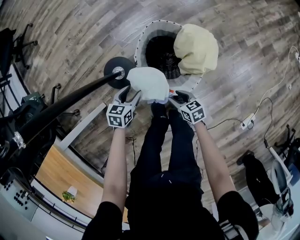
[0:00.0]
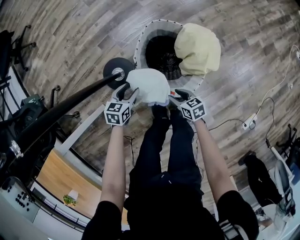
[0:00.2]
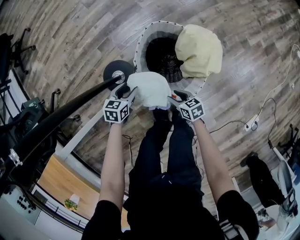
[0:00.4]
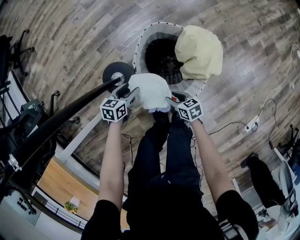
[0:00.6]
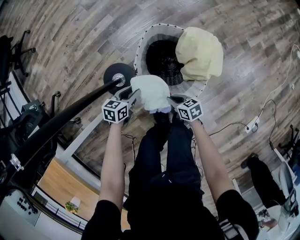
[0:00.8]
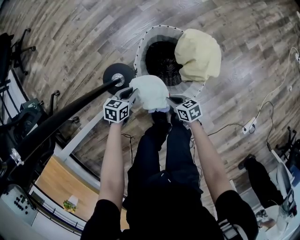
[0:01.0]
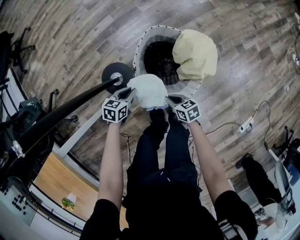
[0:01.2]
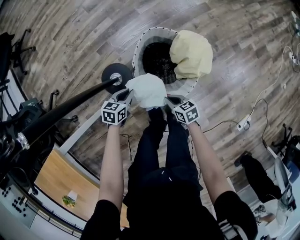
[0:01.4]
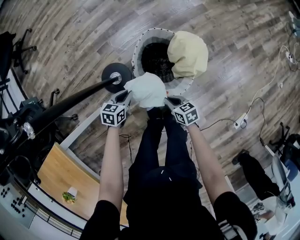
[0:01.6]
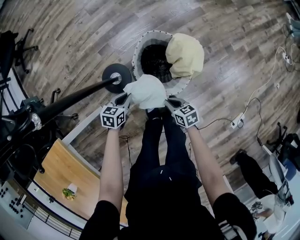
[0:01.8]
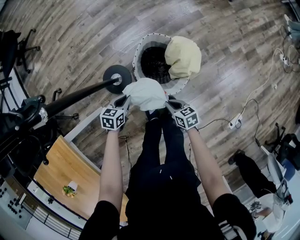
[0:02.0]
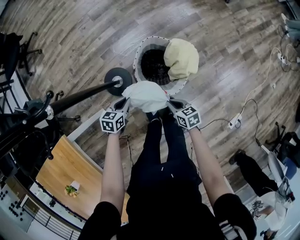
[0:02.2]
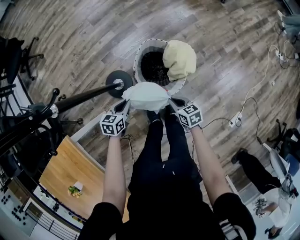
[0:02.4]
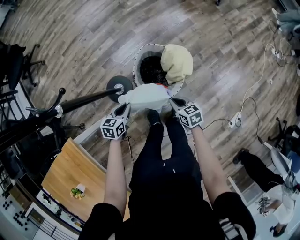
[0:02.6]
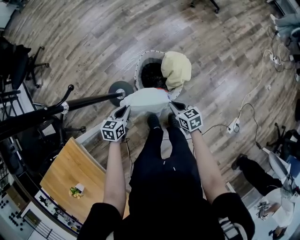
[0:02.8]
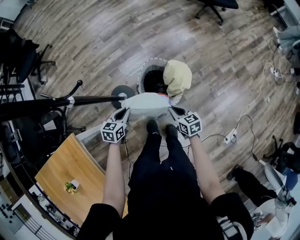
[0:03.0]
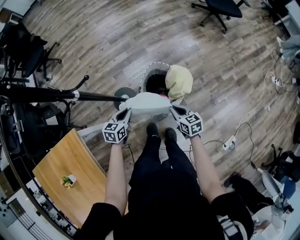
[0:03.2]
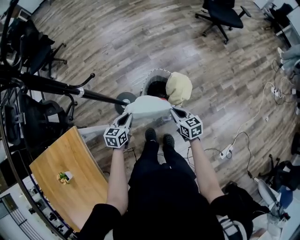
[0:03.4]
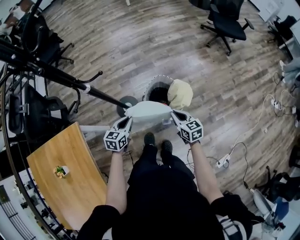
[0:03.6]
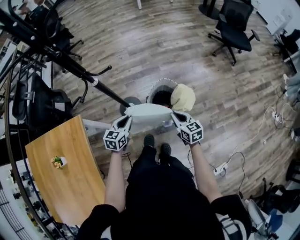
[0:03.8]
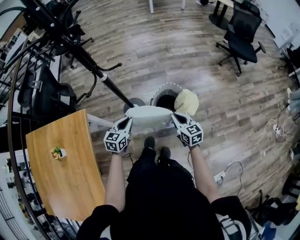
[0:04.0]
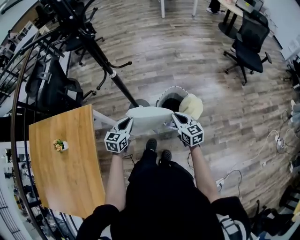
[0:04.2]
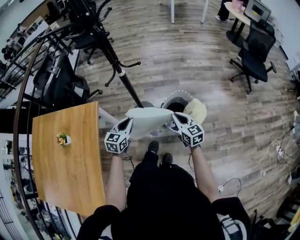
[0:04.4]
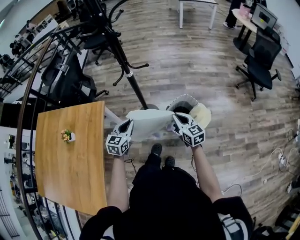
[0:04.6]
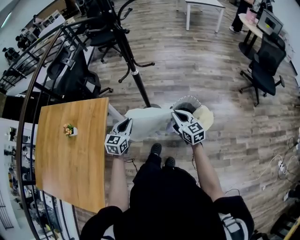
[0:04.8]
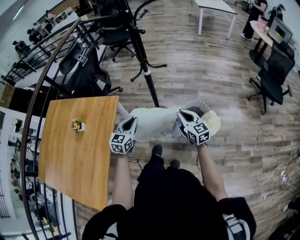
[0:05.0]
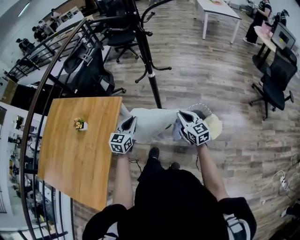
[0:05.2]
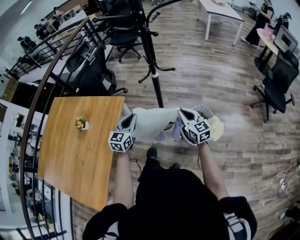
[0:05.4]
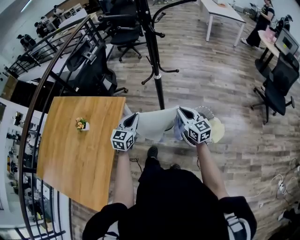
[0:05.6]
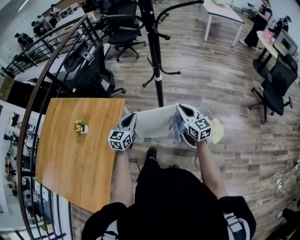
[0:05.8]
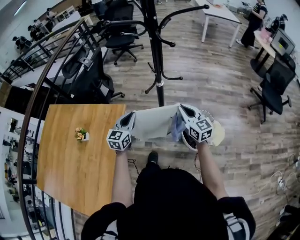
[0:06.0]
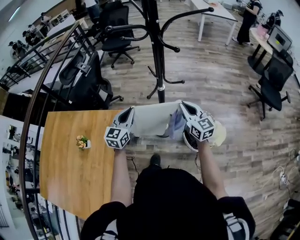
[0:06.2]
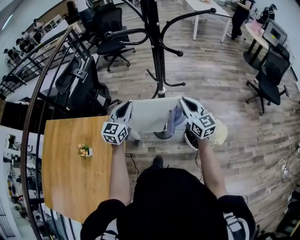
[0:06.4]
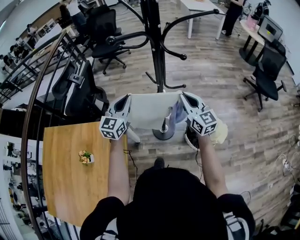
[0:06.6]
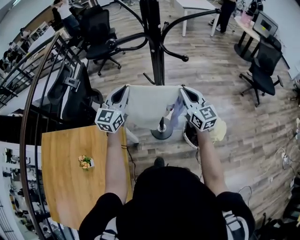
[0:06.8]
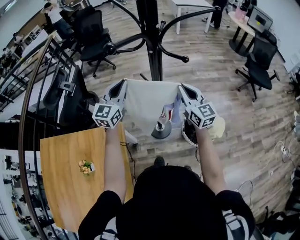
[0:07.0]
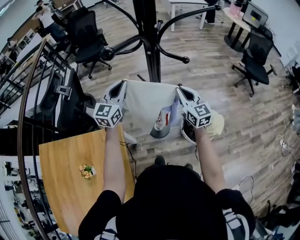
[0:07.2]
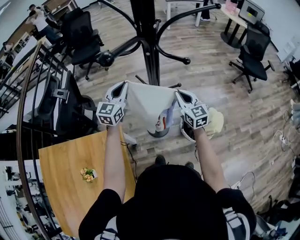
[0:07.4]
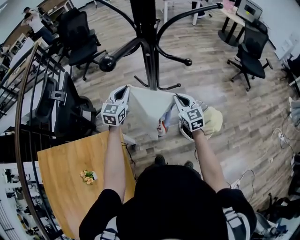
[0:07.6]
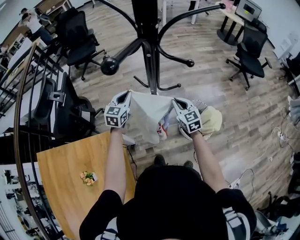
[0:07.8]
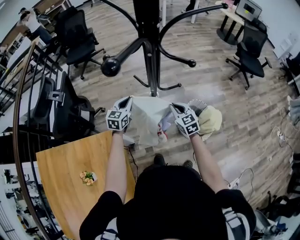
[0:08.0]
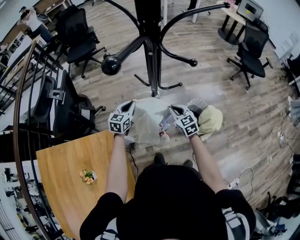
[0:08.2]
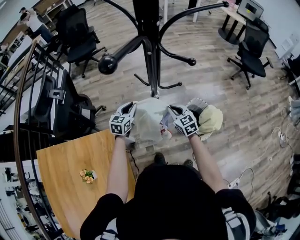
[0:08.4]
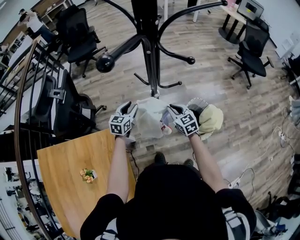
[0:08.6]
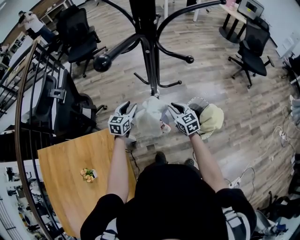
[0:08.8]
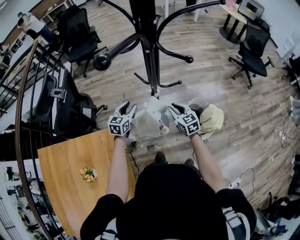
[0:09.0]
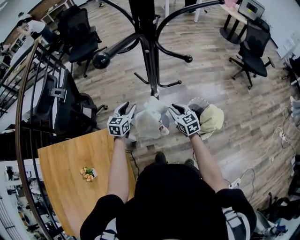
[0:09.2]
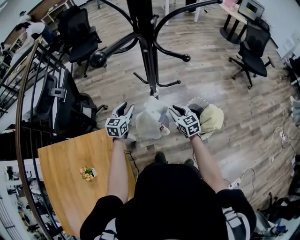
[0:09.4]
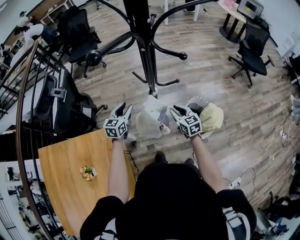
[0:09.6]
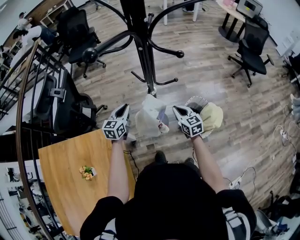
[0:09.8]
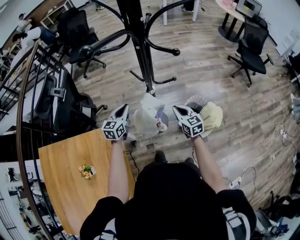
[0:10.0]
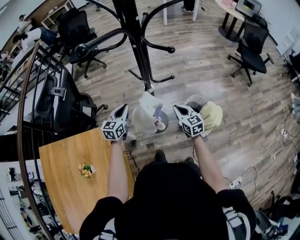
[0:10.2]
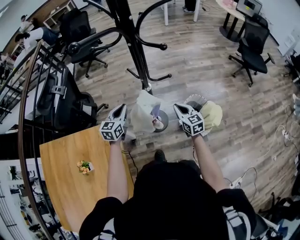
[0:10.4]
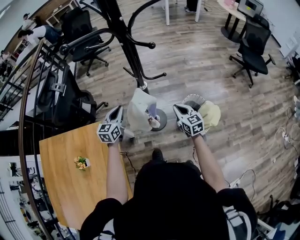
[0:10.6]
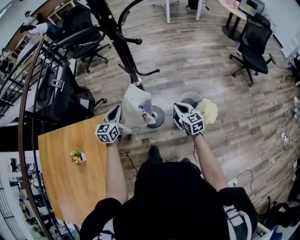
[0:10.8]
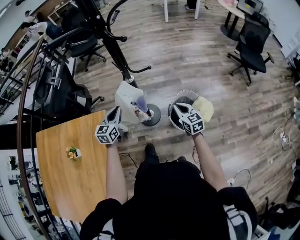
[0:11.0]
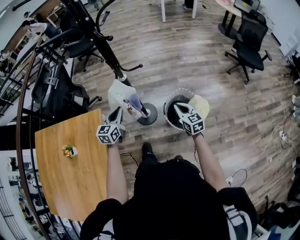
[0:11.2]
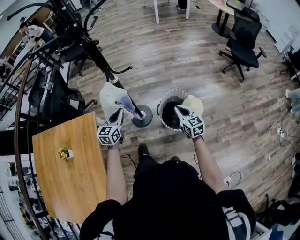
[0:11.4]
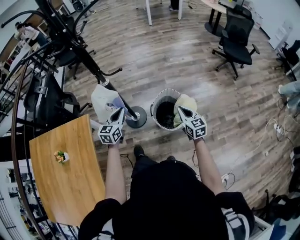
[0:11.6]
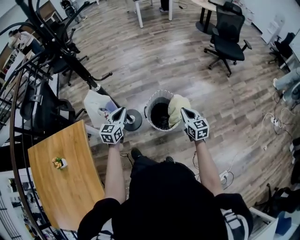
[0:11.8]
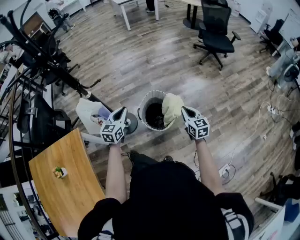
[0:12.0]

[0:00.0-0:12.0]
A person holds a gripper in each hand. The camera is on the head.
0:00.0 to 0:01.6: The right gripper moves upward, about 5 cm, and closes up. The left gripper closes.
0:01.6 to 0:03.0: Both grippers travel together upward, about 20 cm.
0:03.0 to 0:04.4: Both grippers move upward, approximately 20 cm. The right gripper changes its angle by approximately 40 degrees. The left gripper rotates approximately 40 degrees.
0:04.4 to 0:06.0: The two grippers go roughly 20 cm to the left, forward and upward.
0:06.0 to 0:07.6: The right gripper is displaced forward by roughly 15 cm, and swivels roughly 30 degrees, while the left gripper moves forward, approximately 25 cm, and changes its angle by some 20 degrees.
0:07.6 to 0:09.0: The right gripper goes some 10 cm downward. The left gripper travels downward and backward by approximately 15 cm, and opens.
0:09.0 to 0:10.4: The left gripper is displaced backward by approximately 5 cm, and closes. Meanwhile the right gripper moves to the right, some 5 cm, and closes up.
0:10.4 to 0:12.0: The right gripper travels to the right and backward by roughly 40 cm. Meanwhile the left gripper moves to the right, roughly 35 cm.

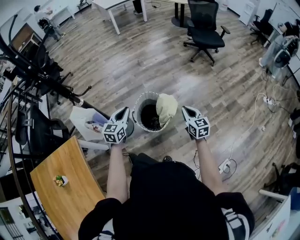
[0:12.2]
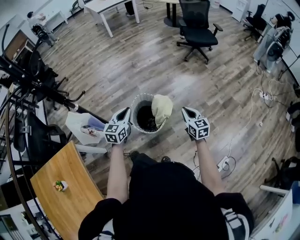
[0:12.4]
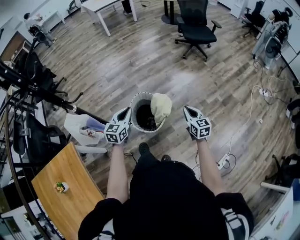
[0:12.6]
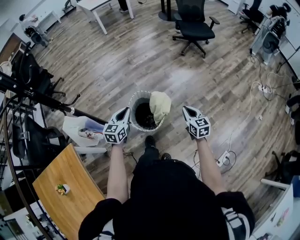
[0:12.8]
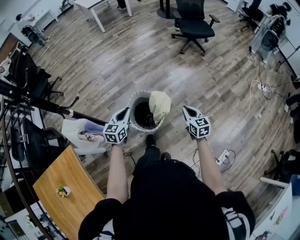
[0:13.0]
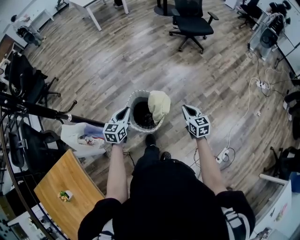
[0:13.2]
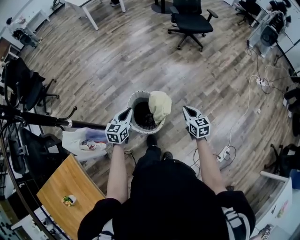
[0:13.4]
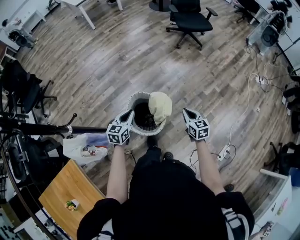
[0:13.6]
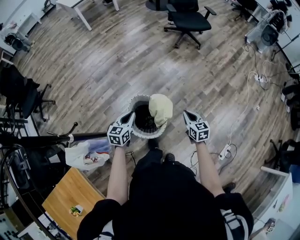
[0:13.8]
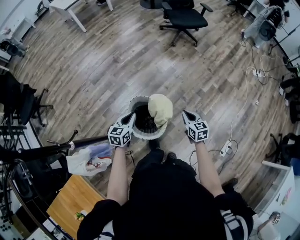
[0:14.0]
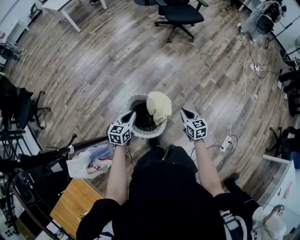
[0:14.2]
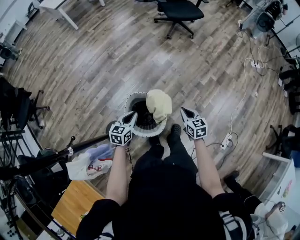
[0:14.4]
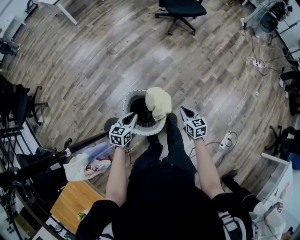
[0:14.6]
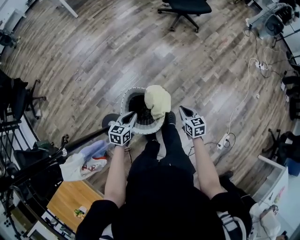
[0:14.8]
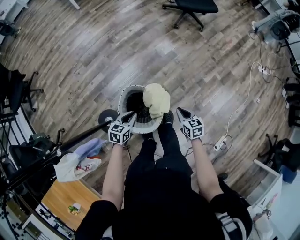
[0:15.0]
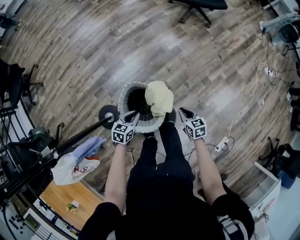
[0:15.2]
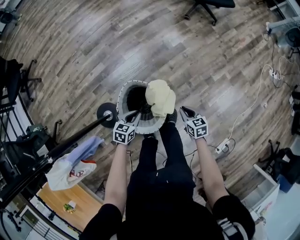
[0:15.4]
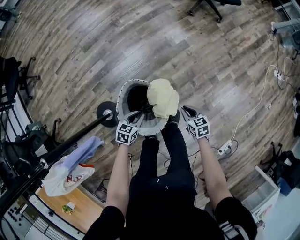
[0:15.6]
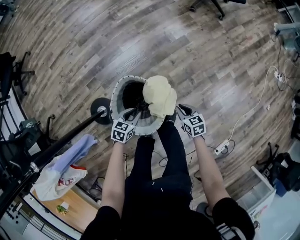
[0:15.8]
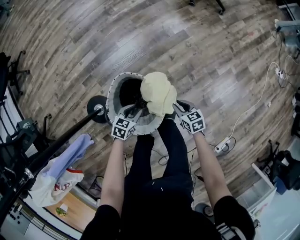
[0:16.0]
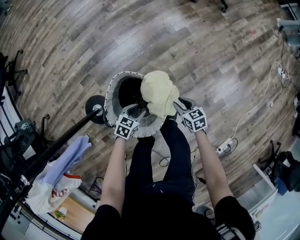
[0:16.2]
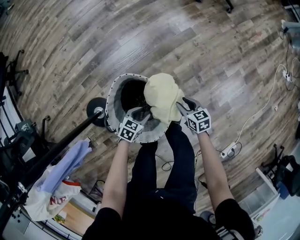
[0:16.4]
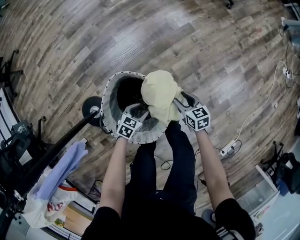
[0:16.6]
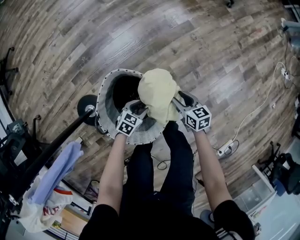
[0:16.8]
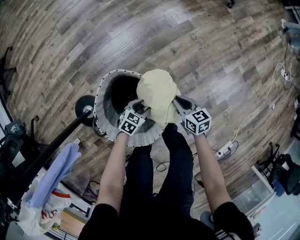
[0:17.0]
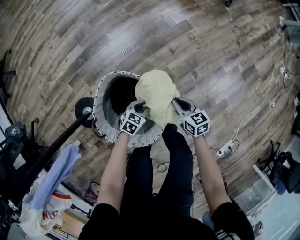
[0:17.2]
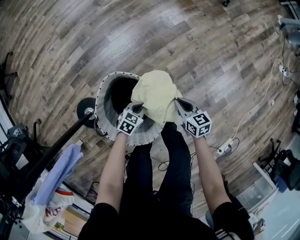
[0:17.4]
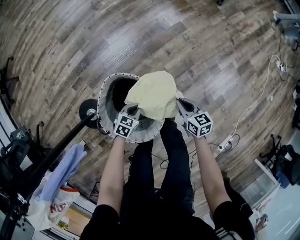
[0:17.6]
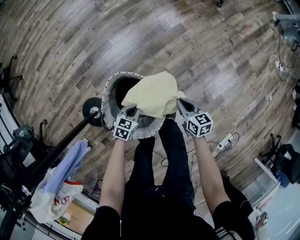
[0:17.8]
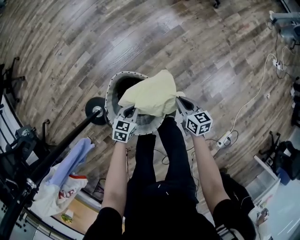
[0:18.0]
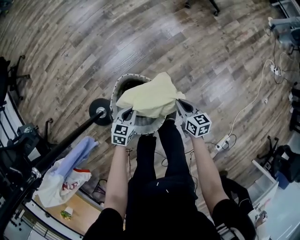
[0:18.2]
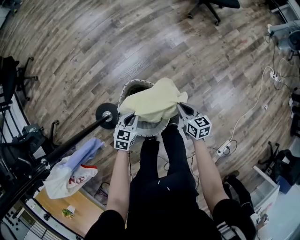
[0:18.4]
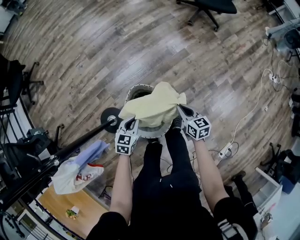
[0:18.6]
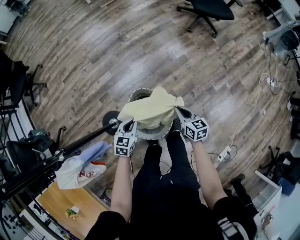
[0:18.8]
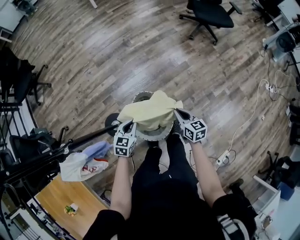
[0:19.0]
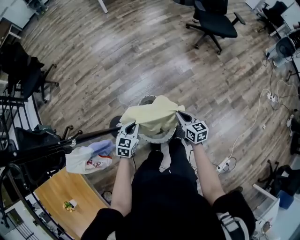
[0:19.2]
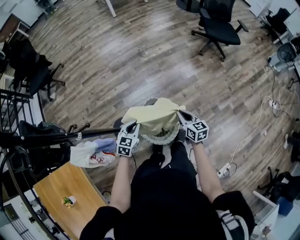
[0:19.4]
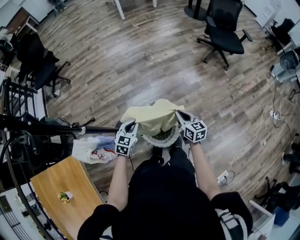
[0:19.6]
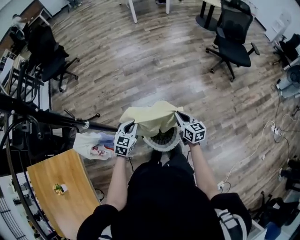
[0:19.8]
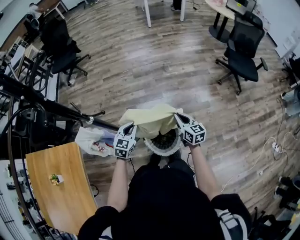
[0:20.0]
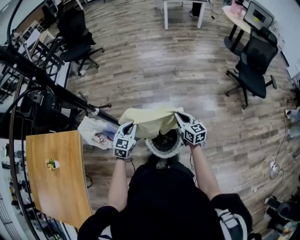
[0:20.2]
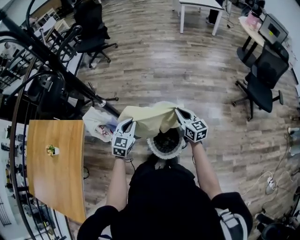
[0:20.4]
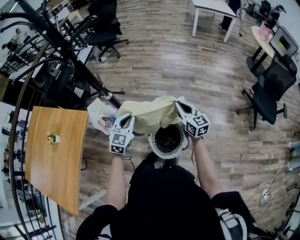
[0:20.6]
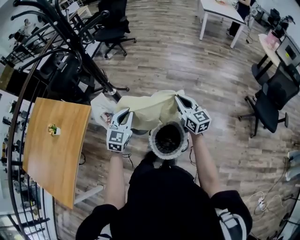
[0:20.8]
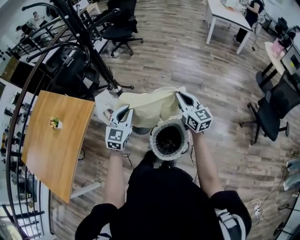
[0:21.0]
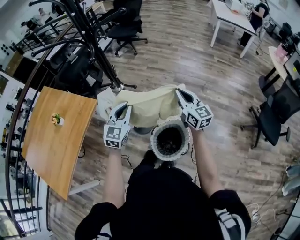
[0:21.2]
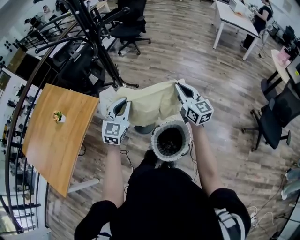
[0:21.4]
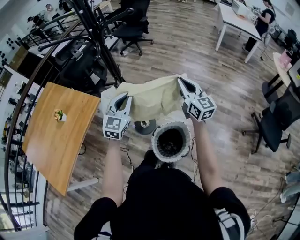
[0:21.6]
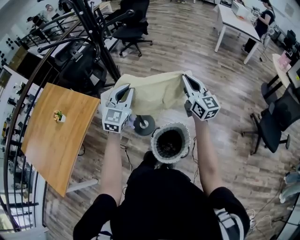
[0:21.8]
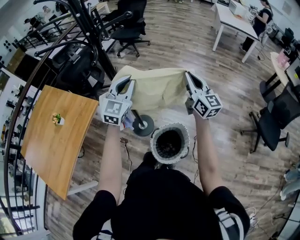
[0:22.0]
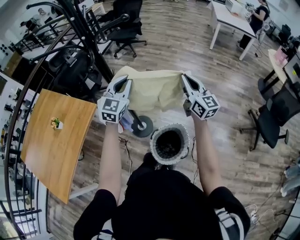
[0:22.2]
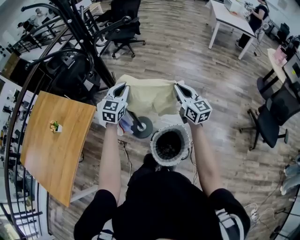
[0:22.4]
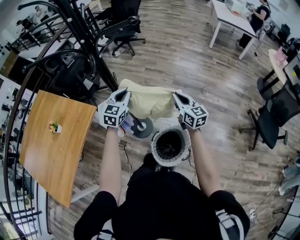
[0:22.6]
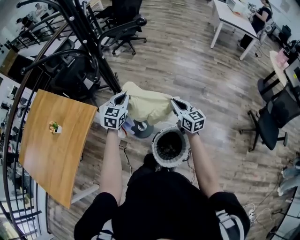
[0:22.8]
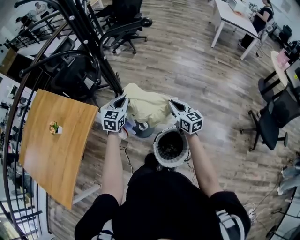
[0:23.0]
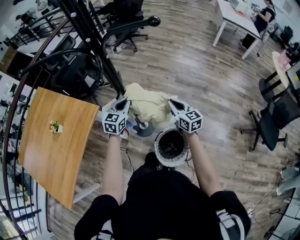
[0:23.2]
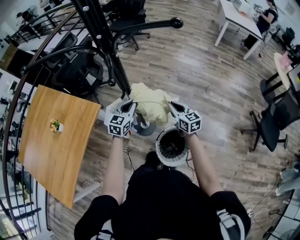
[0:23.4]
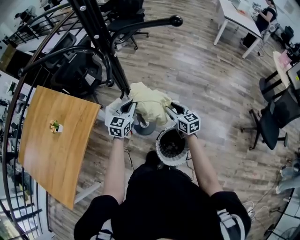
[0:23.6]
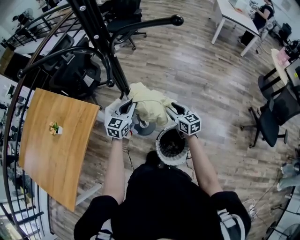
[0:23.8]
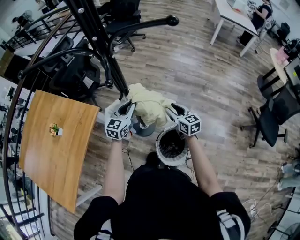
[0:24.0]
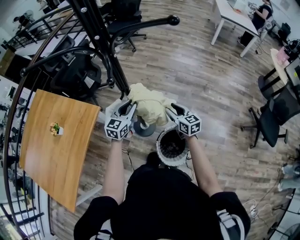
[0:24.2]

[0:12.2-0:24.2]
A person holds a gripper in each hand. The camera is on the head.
0:12.2 to 0:13.8: The left gripper goes some 20 cm forward and downward, and swivels roughly 20 degrees, while the right gripper shifts roughly 10 cm downward and forward.
0:13.8 to 0:15.2: Both grippers travel together downward, approximately 15 cm.
0:15.2 to 0:16.6: The grippers both shift downward by about 30 cm. The right gripper opens up; the left gripper opens its fingers.
0:16.6 to 0:18.2: The grippers both shift upward by approximately 20 cm. The left gripper closes up. Meanwhile the right gripper closes its fingers.
0:18.2 to 0:19.8: Both grippers travel together upward and to the left, some 30 cm. The right gripper changes its angle by about 20 degrees. The left gripper swivels roughly 30 degrees.
0:19.8 to 0:21.2: The grippers both shift upward by approximately 20 cm. The right gripper swivels some 50 degrees, while the left gripper swivels some 50 degrees.
0:21.2 to 0:22.6: The right gripper shifts approximately 10 cm forward. Meanwhile the left gripper moves forward, roughly 15 cm.
0:22.6 to 0:24.2: The right gripper travels downward and to the left by approximately 10 cm, and opens its fingers. The left gripper travels downward by some 5 cm.
